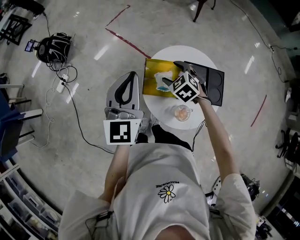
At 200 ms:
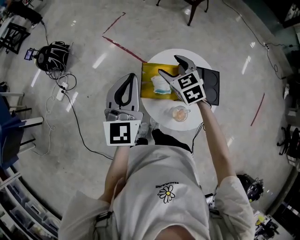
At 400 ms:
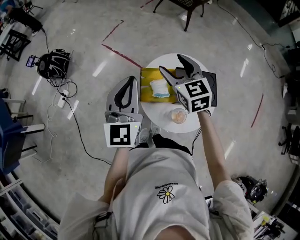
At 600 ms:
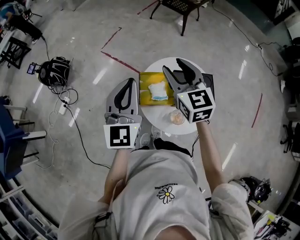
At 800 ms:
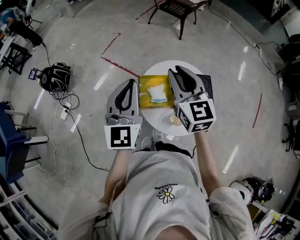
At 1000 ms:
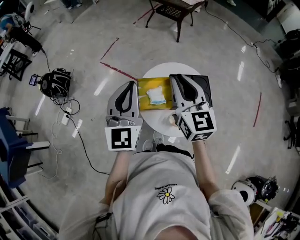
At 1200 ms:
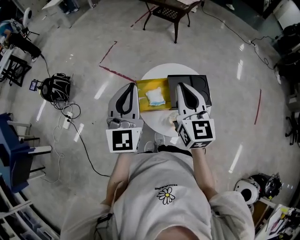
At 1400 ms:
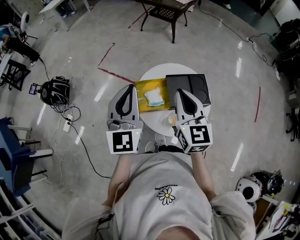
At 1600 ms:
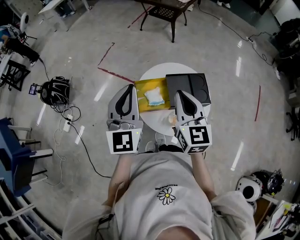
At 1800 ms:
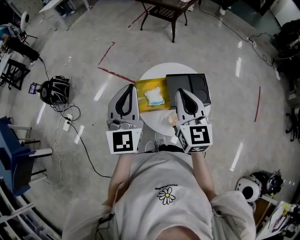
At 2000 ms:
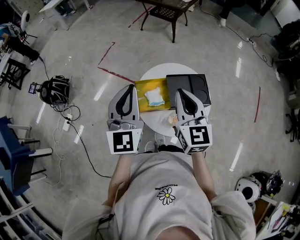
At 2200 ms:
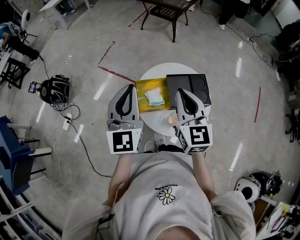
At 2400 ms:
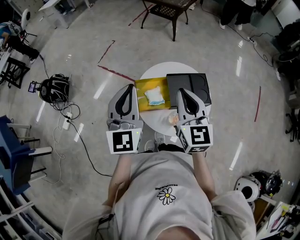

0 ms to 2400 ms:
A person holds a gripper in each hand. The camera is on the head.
0 ms to 1200 ms: The left gripper heads upward, covering some 10 cm; the right gripper travels upward and backward by about 30 cm, tilts its fingers roughly 50 degrees upward, and closes its fingers.
1200 ms to 2400 ms: The grippers move only a little.

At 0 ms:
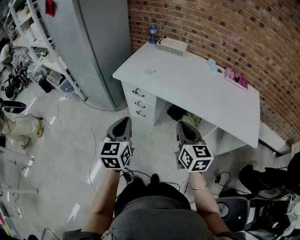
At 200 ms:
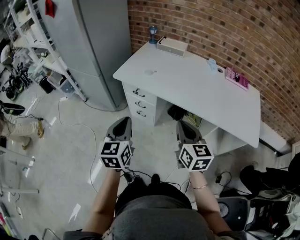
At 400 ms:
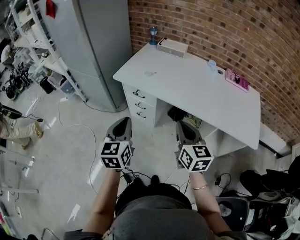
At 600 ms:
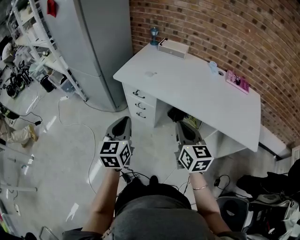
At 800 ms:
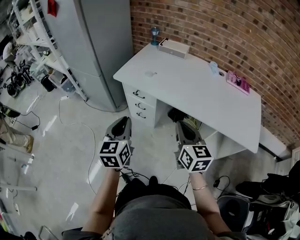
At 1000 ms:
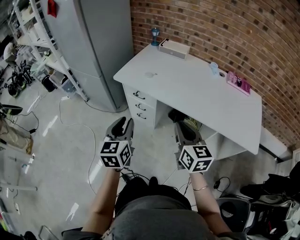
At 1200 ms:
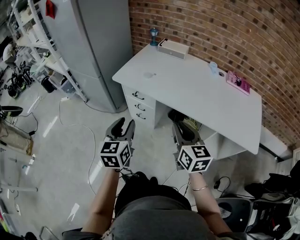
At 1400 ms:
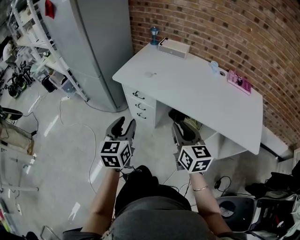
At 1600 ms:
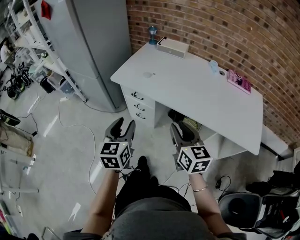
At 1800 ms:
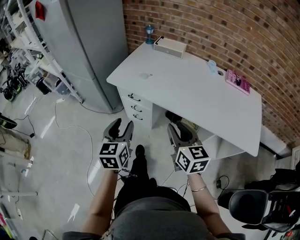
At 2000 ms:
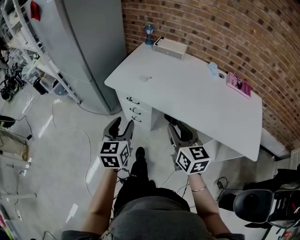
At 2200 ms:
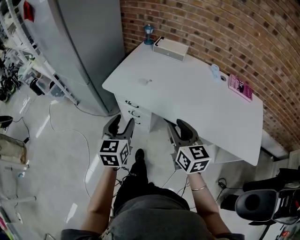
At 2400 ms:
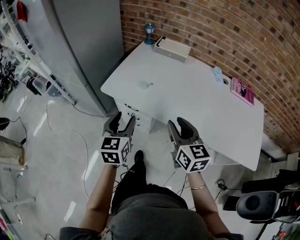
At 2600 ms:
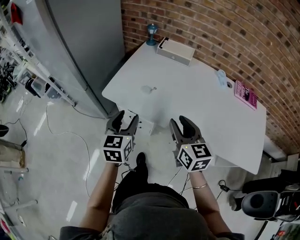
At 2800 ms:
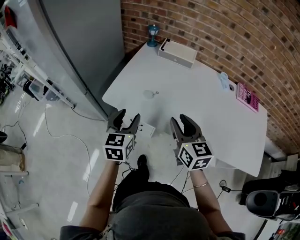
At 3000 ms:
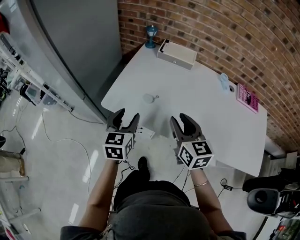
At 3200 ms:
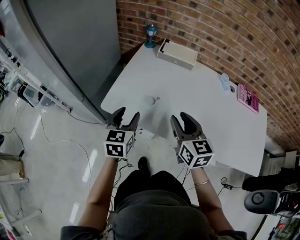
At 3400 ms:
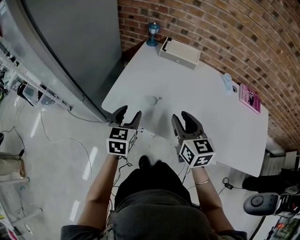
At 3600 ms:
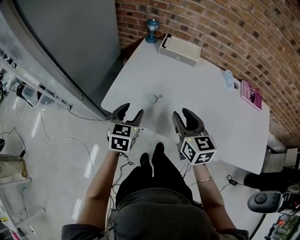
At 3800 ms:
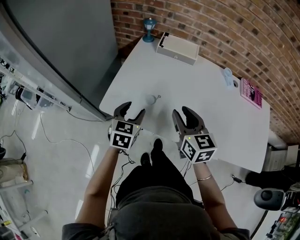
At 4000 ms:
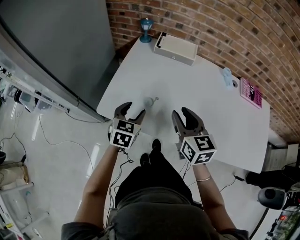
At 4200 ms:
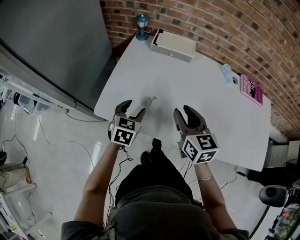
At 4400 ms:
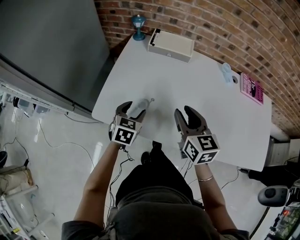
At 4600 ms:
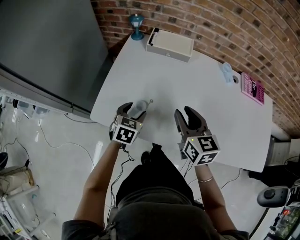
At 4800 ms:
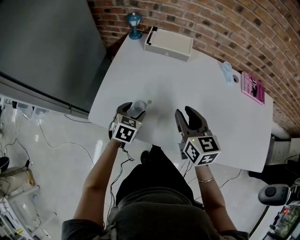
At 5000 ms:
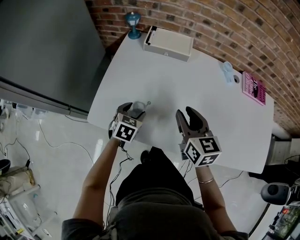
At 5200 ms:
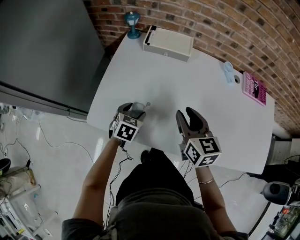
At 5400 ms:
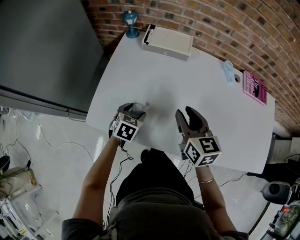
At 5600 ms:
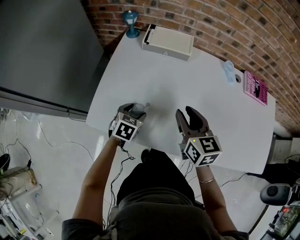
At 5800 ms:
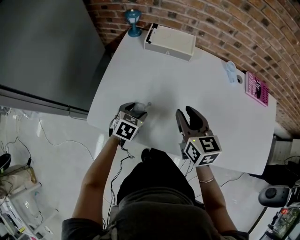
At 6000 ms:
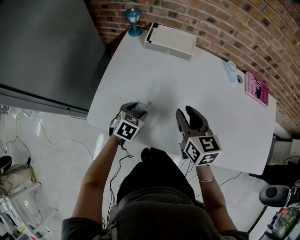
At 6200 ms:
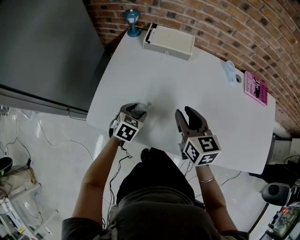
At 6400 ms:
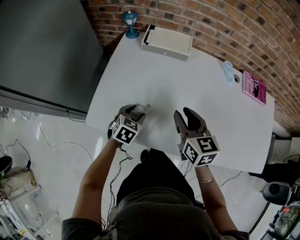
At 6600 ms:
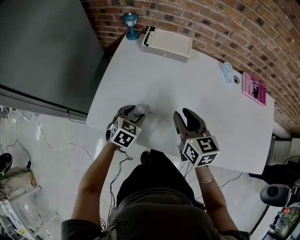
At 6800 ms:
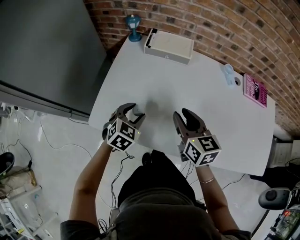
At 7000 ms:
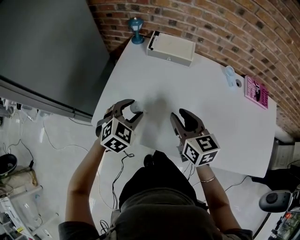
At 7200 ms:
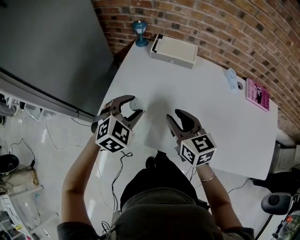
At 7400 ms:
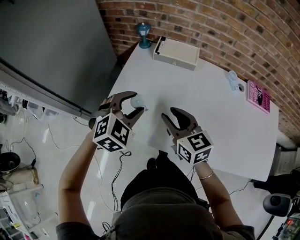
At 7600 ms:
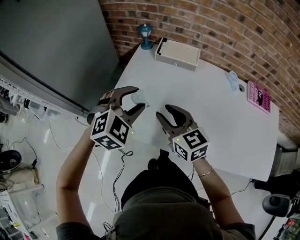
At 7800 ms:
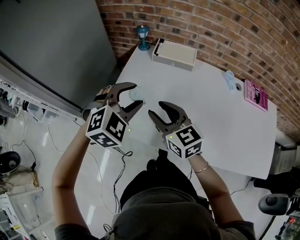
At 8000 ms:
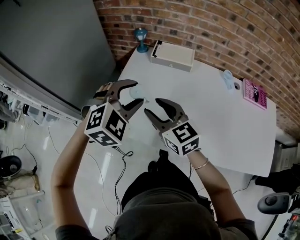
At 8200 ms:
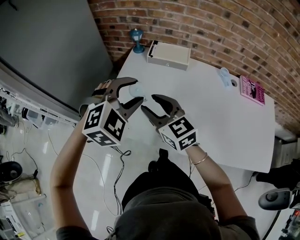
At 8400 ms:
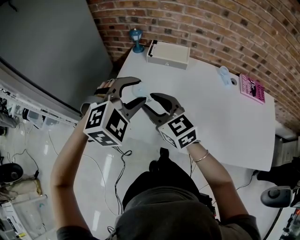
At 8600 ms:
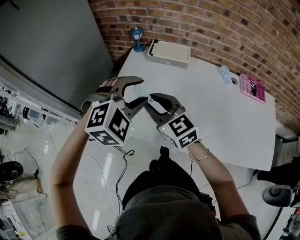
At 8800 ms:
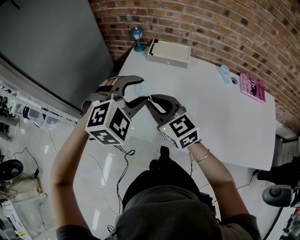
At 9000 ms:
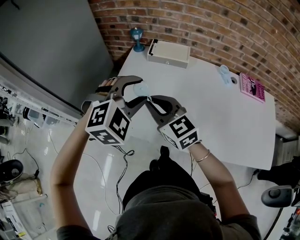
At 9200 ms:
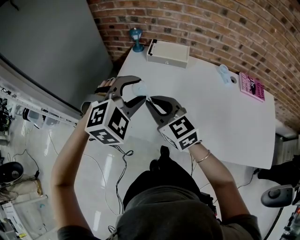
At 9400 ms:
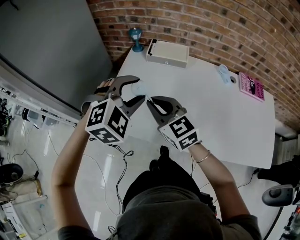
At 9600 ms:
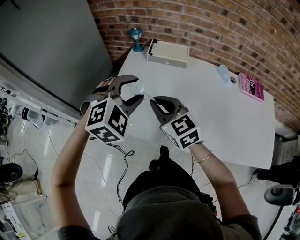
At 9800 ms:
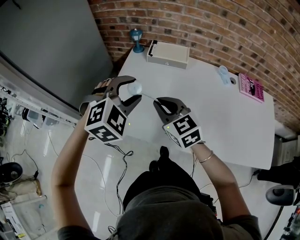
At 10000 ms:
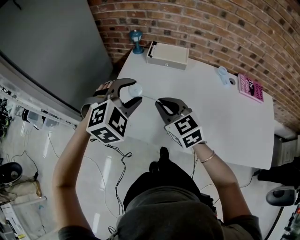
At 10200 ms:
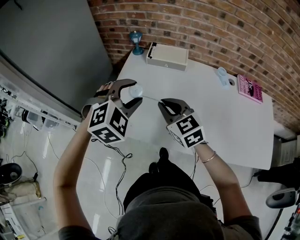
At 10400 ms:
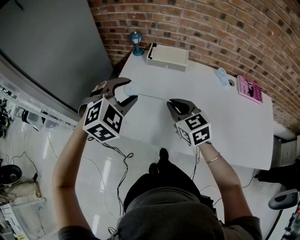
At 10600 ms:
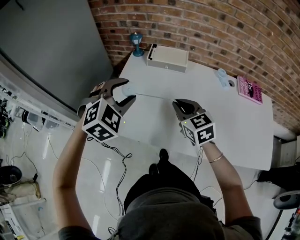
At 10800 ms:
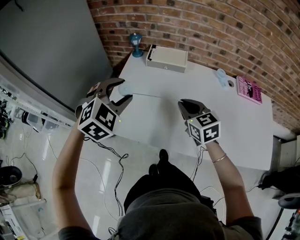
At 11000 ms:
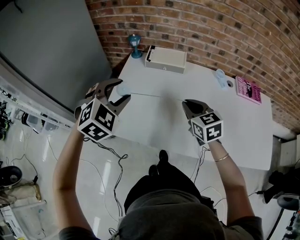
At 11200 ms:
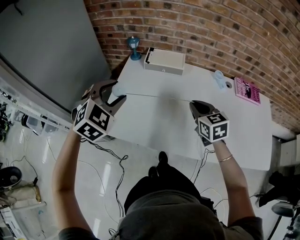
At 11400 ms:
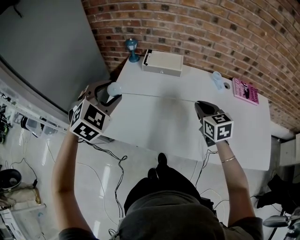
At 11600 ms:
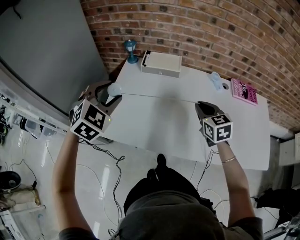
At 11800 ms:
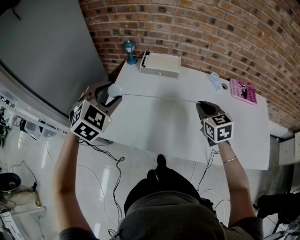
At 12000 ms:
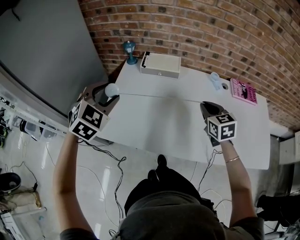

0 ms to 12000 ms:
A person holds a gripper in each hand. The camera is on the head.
0 ms to 1600 ms: The right gripper opens its fingers, while the left gripper opens up.
1600 ms to 3000 ms: The grippers both shift forward by roughly 30 cm.
3000 ms to 4400 ms: The right gripper shifts roughly 10 cm forward; the left gripper is displaced forward, downward and to the right by approximately 15 cm, and turns by roughly 30 degrees.
4400 ms to 6000 ms: The left gripper travels downward by some 5 cm.
6000 ms to 7600 ms: The left gripper shifts some 20 cm upward, and swivels approximately 40 degrees. Meanwhile the right gripper travels to the left by some 10 cm, and rotates about 20 degrees.
7600 ms to 9000 ms: The left gripper goes approximately 5 cm upward. Meanwhile the right gripper closes.
9000 ms to 10400 ms: The right gripper heads to the right, covering some 10 cm.
10400 ms to 12000 ms: The right gripper heads to the right, covering some 20 cm. The left gripper moves to the left, approximately 5 cm.

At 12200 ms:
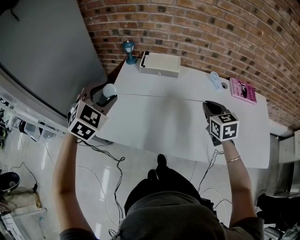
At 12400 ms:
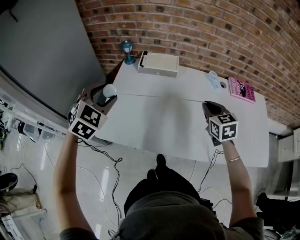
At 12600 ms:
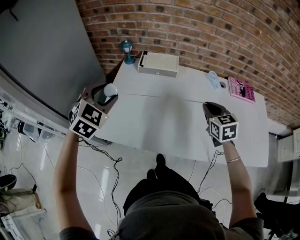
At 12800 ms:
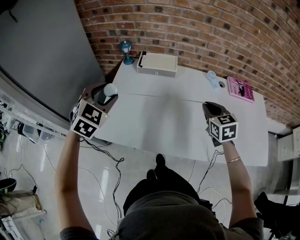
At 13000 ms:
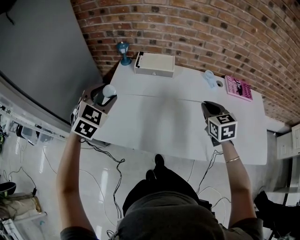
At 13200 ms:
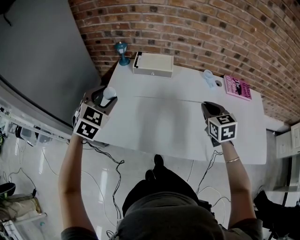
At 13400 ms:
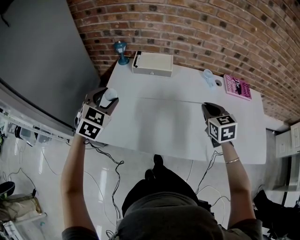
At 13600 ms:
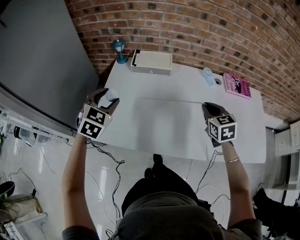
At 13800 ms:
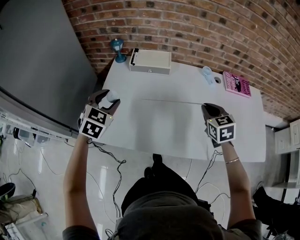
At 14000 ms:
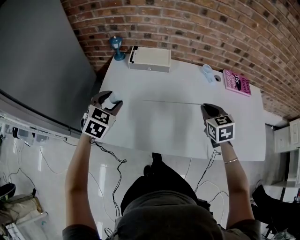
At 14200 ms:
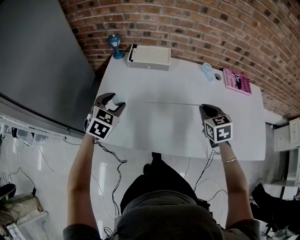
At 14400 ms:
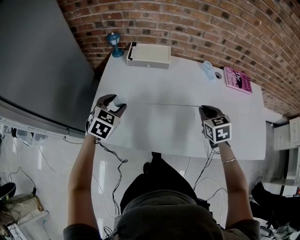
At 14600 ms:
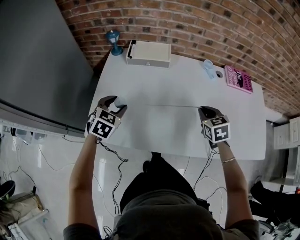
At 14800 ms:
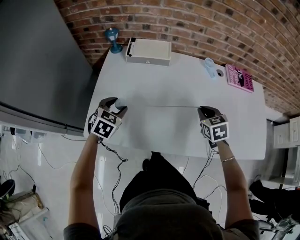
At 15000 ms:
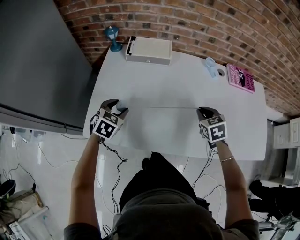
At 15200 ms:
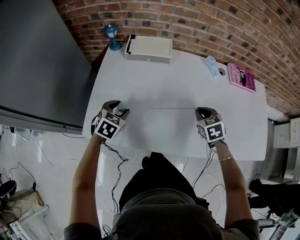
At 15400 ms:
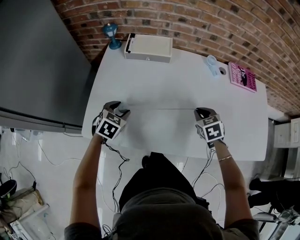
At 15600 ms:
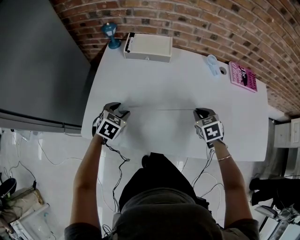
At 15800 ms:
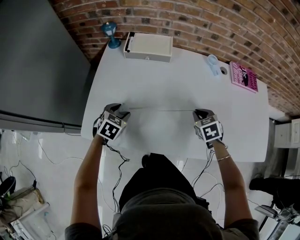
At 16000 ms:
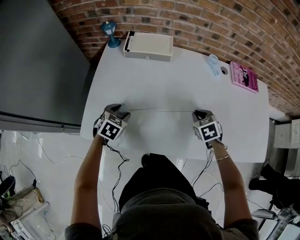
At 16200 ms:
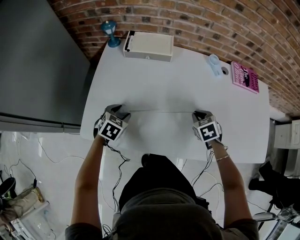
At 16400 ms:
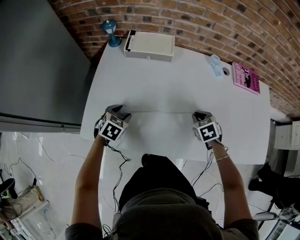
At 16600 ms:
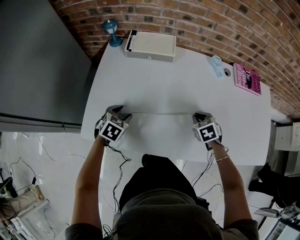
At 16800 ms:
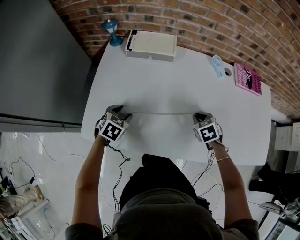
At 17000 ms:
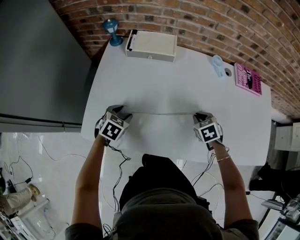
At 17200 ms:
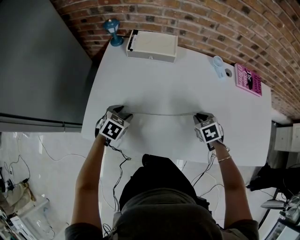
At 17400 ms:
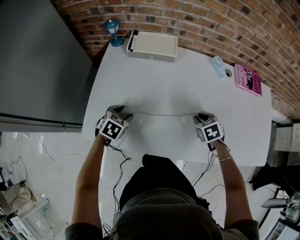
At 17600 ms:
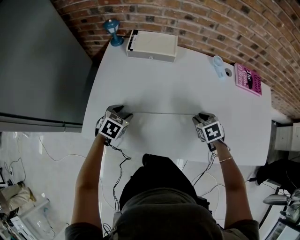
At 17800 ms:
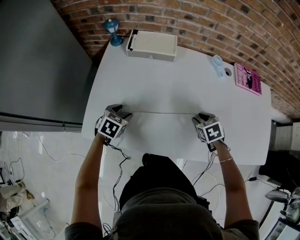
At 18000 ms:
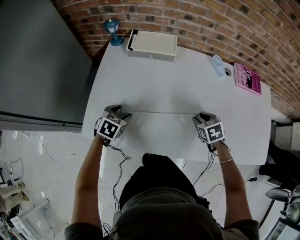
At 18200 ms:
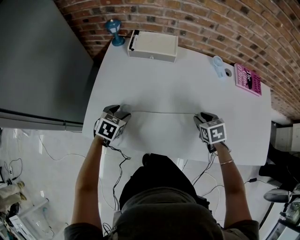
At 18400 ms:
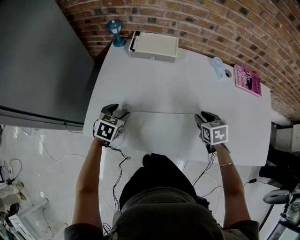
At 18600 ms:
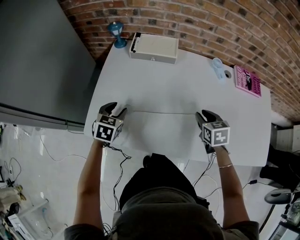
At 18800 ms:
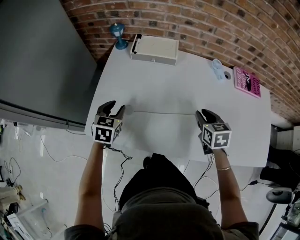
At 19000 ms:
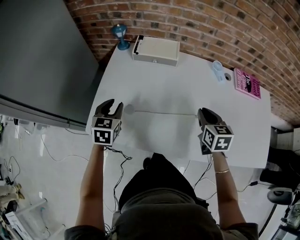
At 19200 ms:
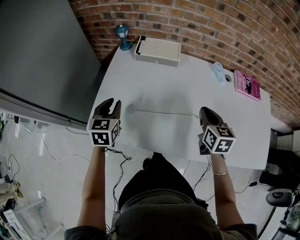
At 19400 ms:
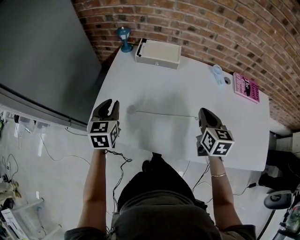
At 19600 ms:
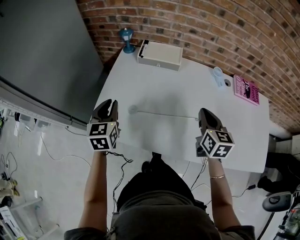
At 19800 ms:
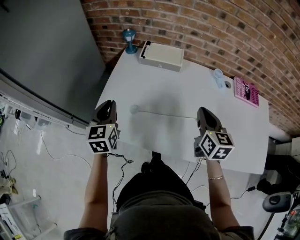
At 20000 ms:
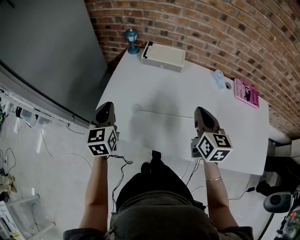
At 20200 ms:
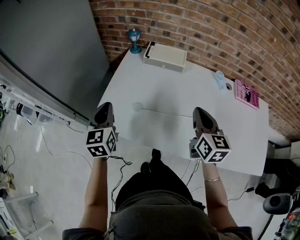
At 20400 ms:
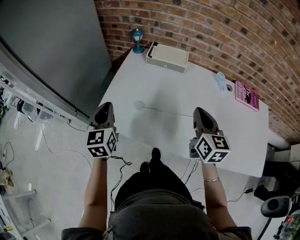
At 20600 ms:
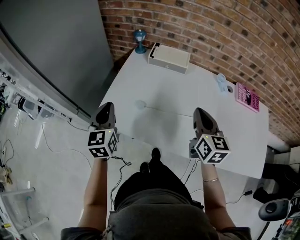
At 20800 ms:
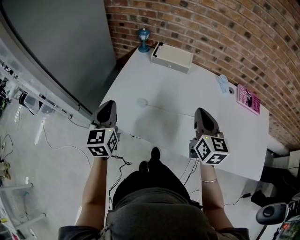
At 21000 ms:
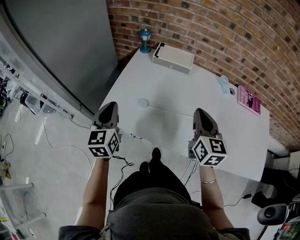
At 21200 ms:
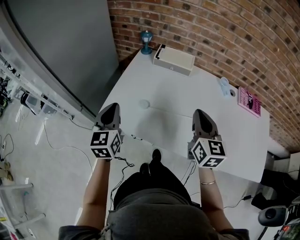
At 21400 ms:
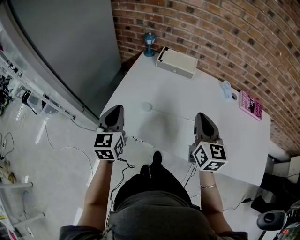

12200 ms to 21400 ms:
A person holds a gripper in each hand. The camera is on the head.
12200 ms to 13800 ms: The left gripper moves downward, roughly 10 cm.
13800 ms to 15200 ms: The two grippers go about 15 cm downward.
15200 ms to 16800 ms: The right gripper travels downward by roughly 5 cm; the left gripper shifts by roughly 5 cm.
16800 ms to 18400 ms: The right gripper opens.
18400 ms to 19800 ms: The grippers both shift upward by approximately 15 cm. The right gripper tips its fingers upward by about 30 degrees, and closes its fingers; the left gripper angles its fingers upward, by some 30 degrees, and closes.
19800 ms to 21400 ms: The right gripper heads to the left, covering some 5 cm; the left gripper shifts about 5 cm backward.
